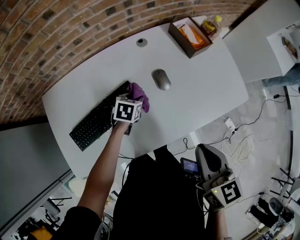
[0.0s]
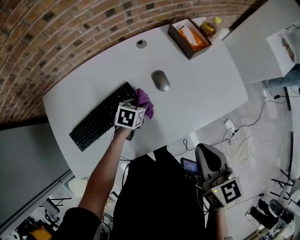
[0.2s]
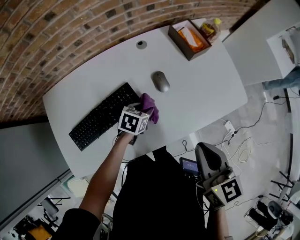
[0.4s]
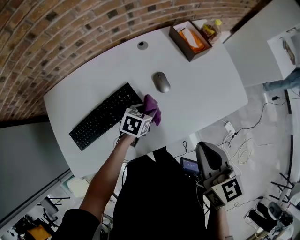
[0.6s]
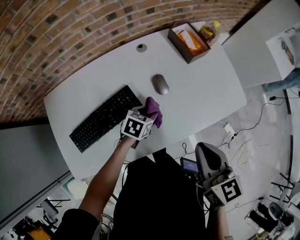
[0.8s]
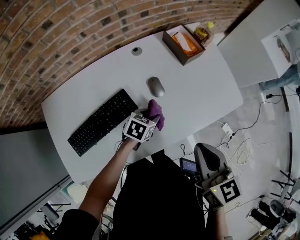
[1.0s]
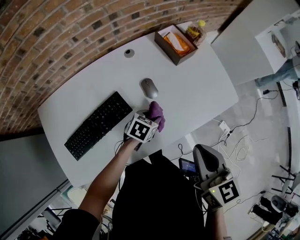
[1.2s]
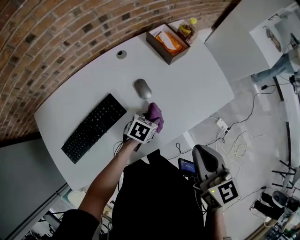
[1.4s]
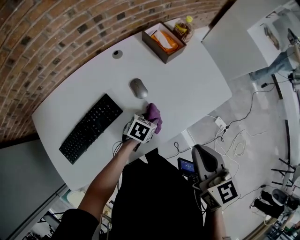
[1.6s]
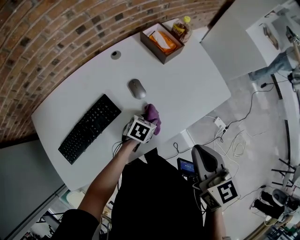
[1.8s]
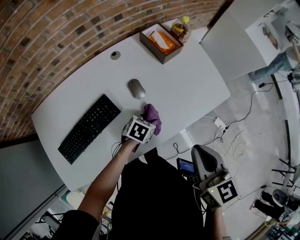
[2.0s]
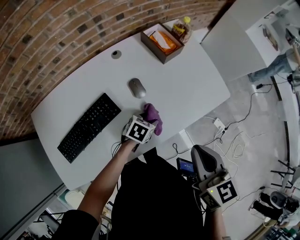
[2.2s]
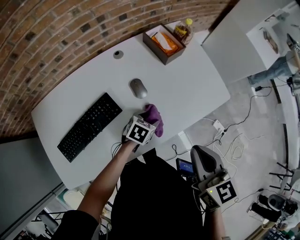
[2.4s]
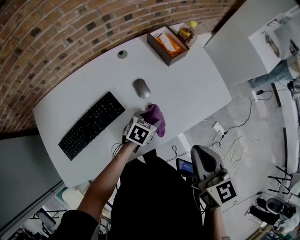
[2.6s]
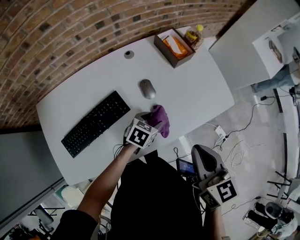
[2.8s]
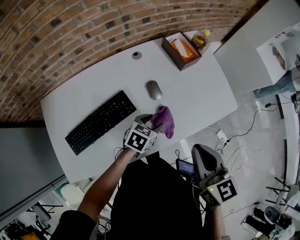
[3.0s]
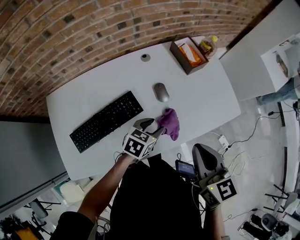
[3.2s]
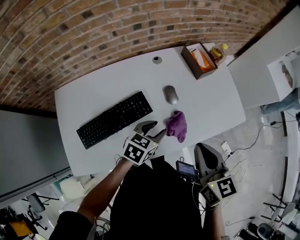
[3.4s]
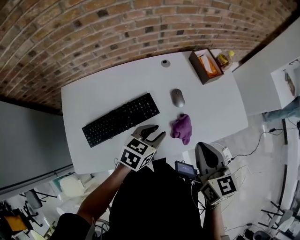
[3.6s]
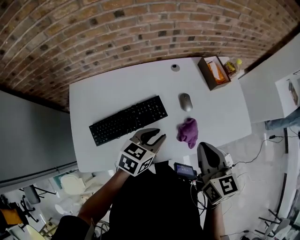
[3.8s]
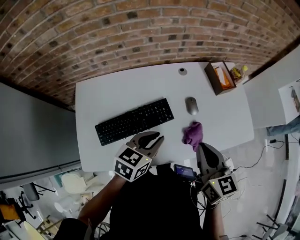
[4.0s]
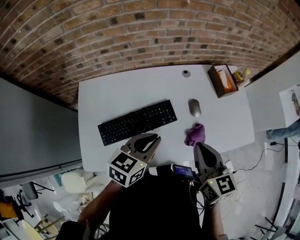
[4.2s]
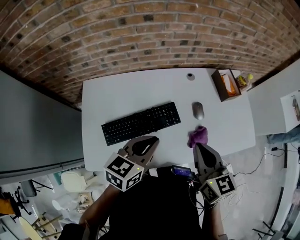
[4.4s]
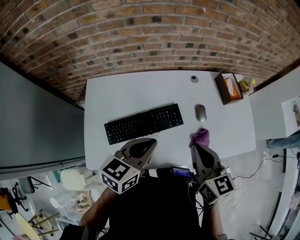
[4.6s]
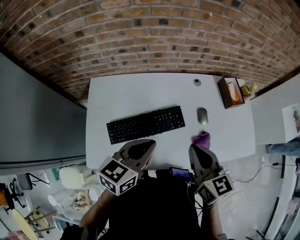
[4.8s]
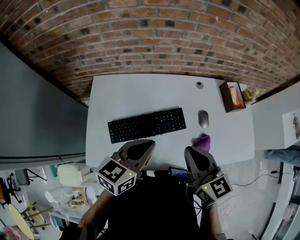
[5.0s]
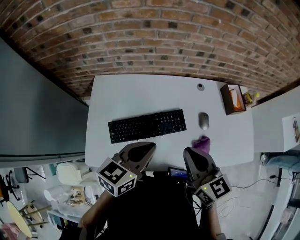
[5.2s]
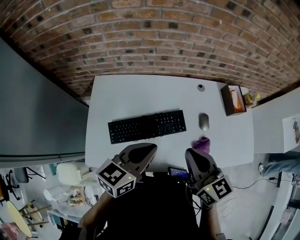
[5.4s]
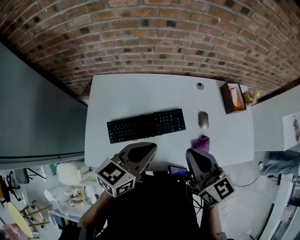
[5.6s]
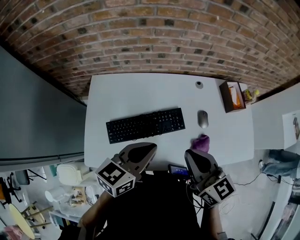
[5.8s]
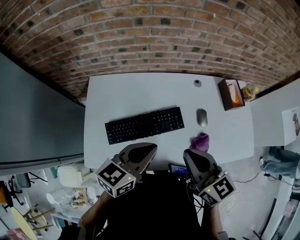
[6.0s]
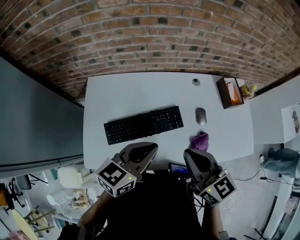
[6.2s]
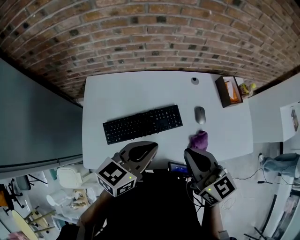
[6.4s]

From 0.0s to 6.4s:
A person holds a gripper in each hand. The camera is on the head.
From 0.0s to 1.6s: The right gripper is displaced to the right by some 5 cm; the left gripper is displaced to the right by approximately 20 cm, and rotates approximately 20 degrees.
From 1.6s to 3.2s: The left gripper moves upward and to the left, approximately 10 cm, while the right gripper travels to the left by roughly 5 cm.
From 3.2s to 4.8s: The left gripper travels to the left, upward and backward by some 30 cm, swivels about 30 degrees, and closes up; the right gripper is displaced to the left by some 20 cm, and rotates about 20 degrees.
From 4.8s to 6.4s: There are only small adjustments of the grippers.

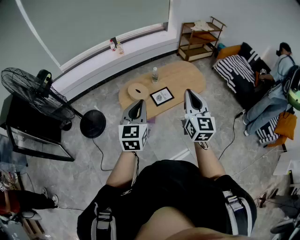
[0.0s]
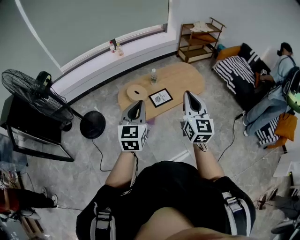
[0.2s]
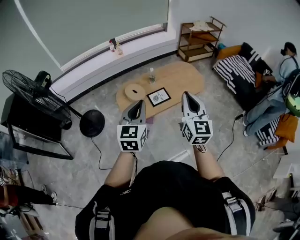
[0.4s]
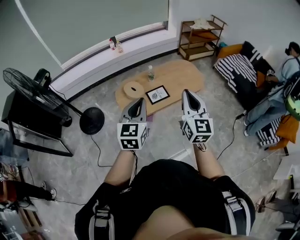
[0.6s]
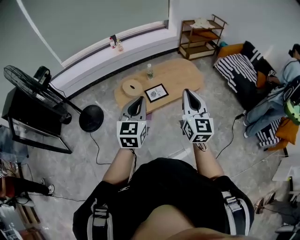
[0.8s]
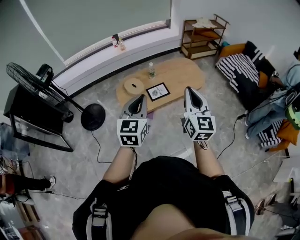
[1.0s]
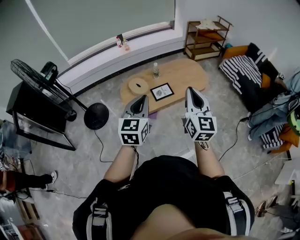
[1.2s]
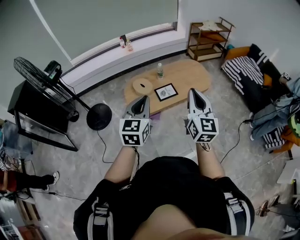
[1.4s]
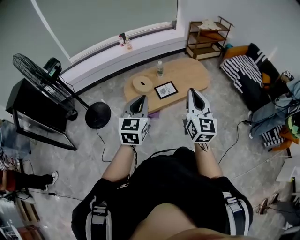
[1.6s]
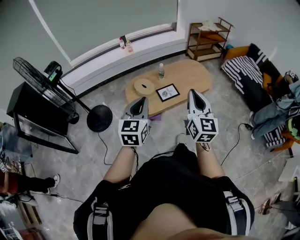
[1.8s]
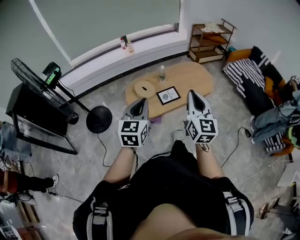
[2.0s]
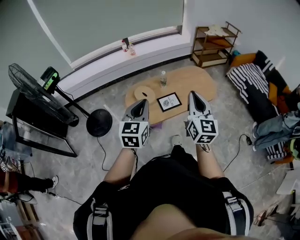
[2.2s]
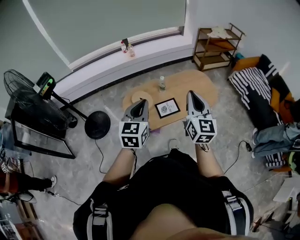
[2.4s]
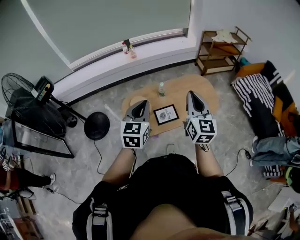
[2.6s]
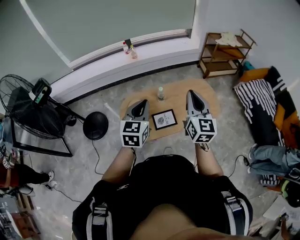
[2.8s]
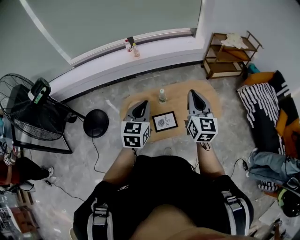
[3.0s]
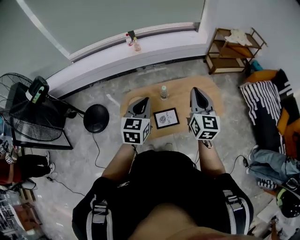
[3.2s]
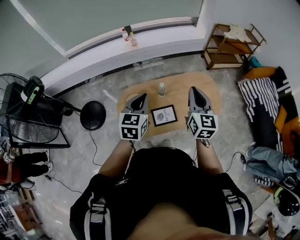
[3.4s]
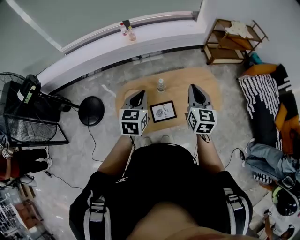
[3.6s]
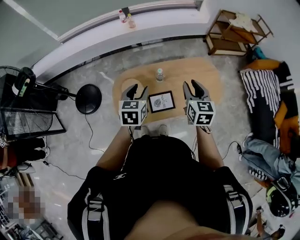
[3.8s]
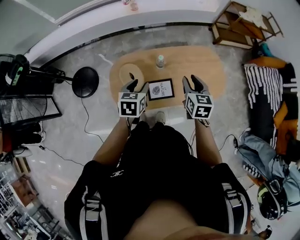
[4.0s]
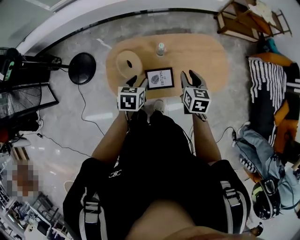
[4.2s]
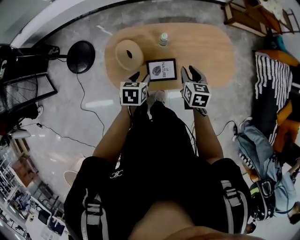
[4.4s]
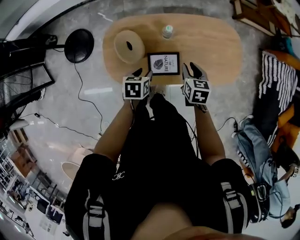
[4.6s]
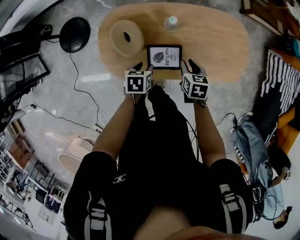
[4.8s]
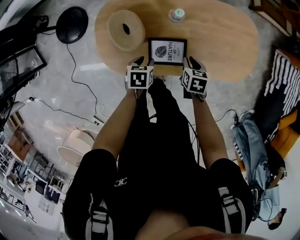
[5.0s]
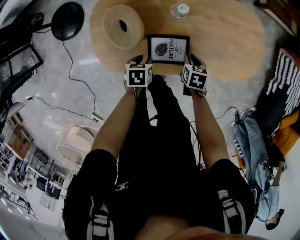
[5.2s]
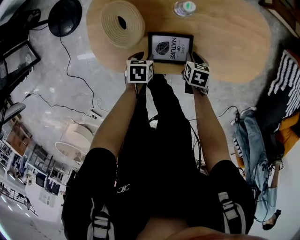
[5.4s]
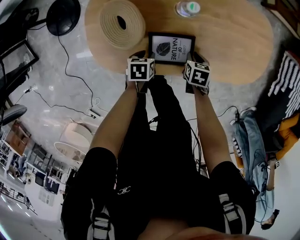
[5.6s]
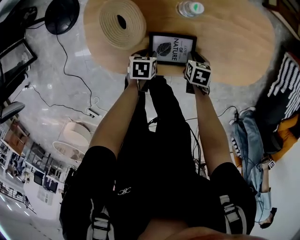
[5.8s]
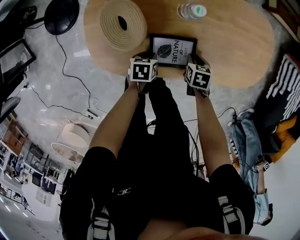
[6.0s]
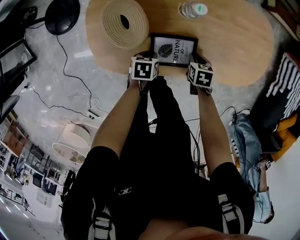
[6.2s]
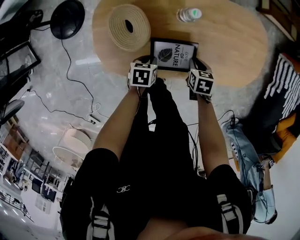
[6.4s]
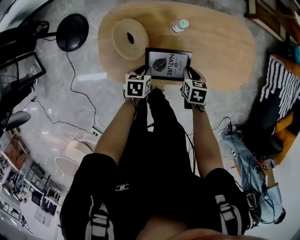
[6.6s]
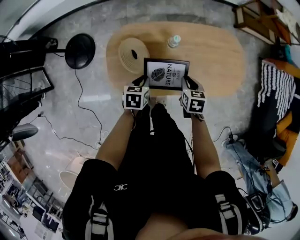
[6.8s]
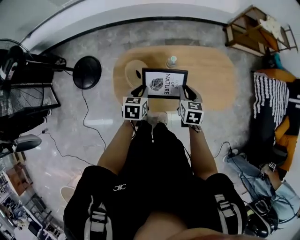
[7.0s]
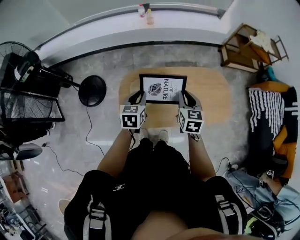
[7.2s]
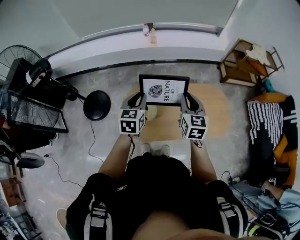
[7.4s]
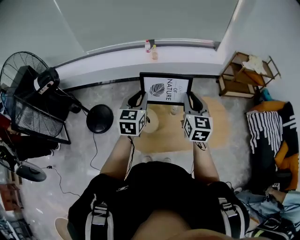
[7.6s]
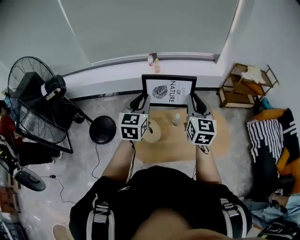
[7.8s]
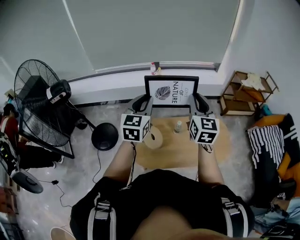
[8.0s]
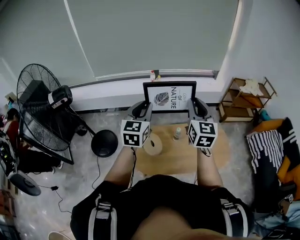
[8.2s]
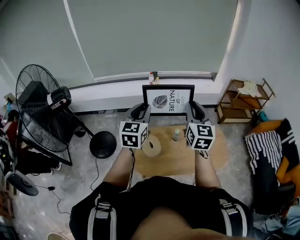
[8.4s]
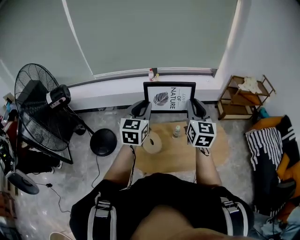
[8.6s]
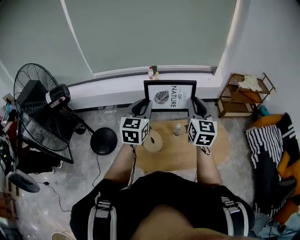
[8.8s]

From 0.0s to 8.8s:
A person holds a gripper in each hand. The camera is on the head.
From 0.0s to 1.4s: The left gripper moves to the right and backward, about 10 cm, while the right gripper is displaced backward and to the right by roughly 10 cm.
From 1.4s to 3.0s: Both grippers are carried forward, approximately 40 cm.
From 3.0s to 4.4s: The two grippers go some 35 cm downward. The right gripper tips its fingers downward by some 40 degrees, and opens. The left gripper points its fingers roughly 40 degrees further downward, and opens up.
From 4.4s to 5.8s: Both grippers move downward, about 40 cm. The left gripper rotates roughly 20 degrees; the right gripper rotates about 30 degrees.
From 5.8s to 7.4s: The two grippers go approximately 60 cm upward. The right gripper tips its fingers upward by about 50 degrees. The left gripper points its fingers about 40 degrees further upward.
From 7.4s to 8.8s: The grippers both shift upward by approximately 20 cm.

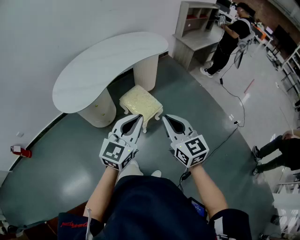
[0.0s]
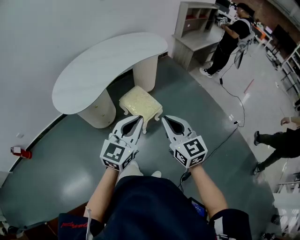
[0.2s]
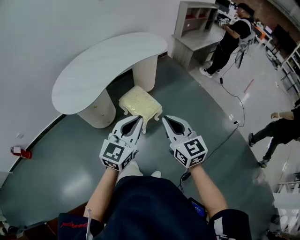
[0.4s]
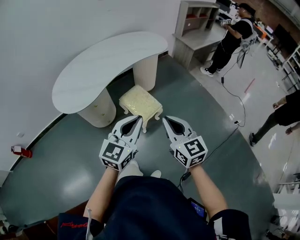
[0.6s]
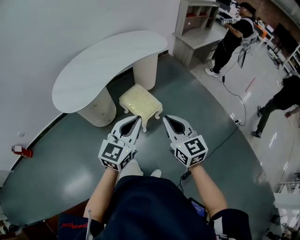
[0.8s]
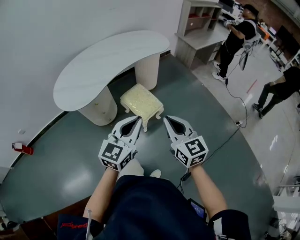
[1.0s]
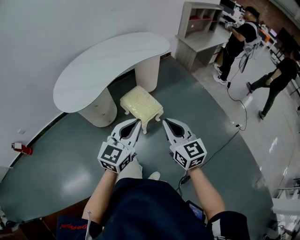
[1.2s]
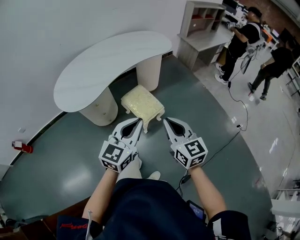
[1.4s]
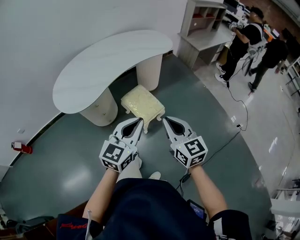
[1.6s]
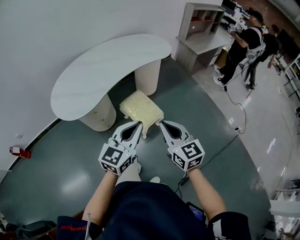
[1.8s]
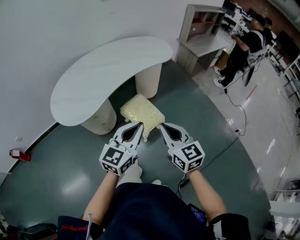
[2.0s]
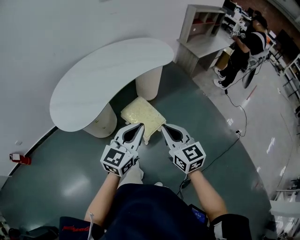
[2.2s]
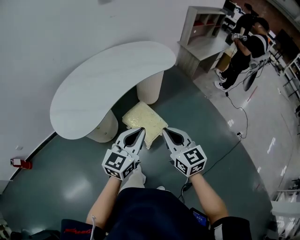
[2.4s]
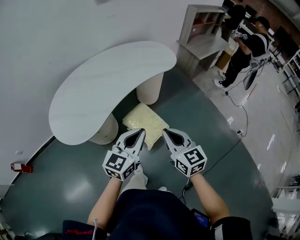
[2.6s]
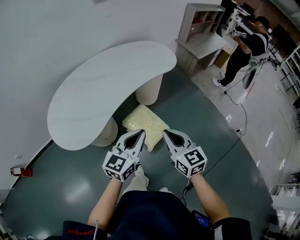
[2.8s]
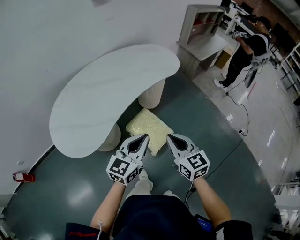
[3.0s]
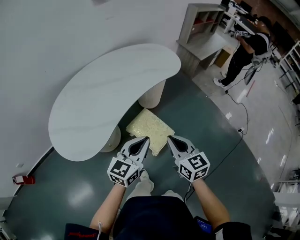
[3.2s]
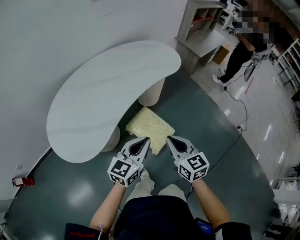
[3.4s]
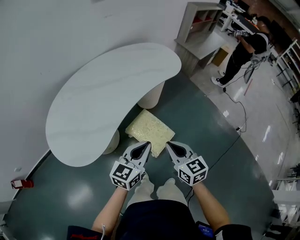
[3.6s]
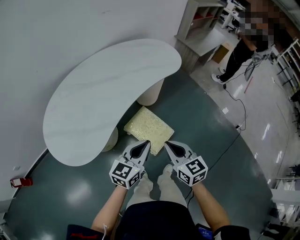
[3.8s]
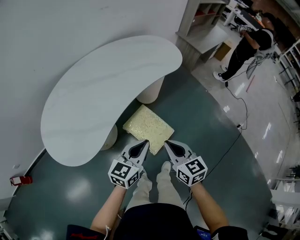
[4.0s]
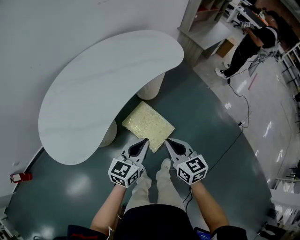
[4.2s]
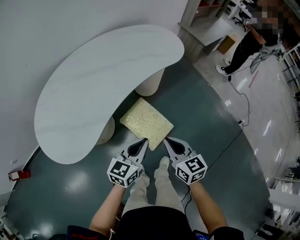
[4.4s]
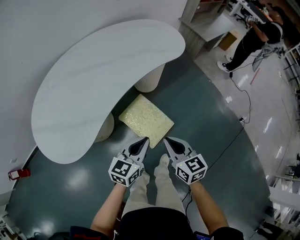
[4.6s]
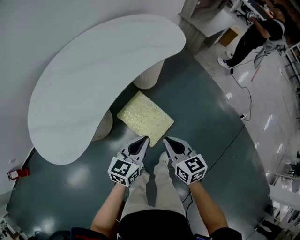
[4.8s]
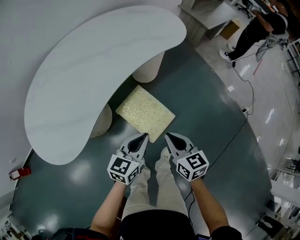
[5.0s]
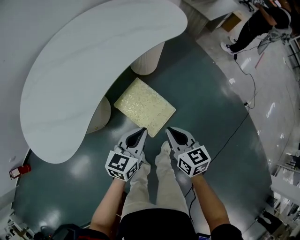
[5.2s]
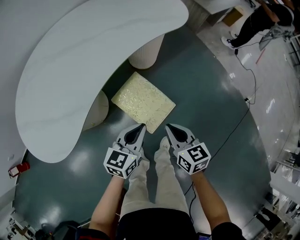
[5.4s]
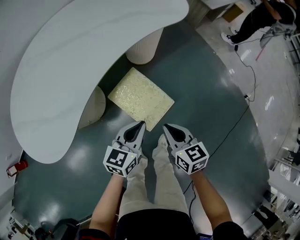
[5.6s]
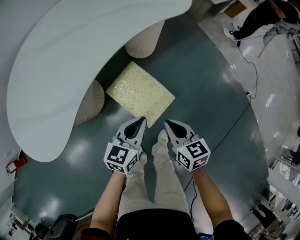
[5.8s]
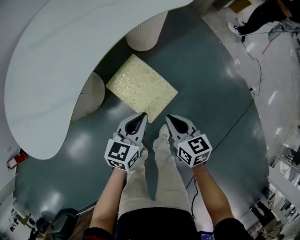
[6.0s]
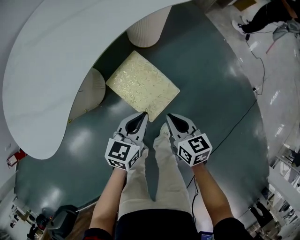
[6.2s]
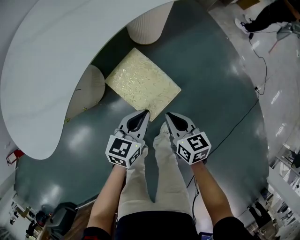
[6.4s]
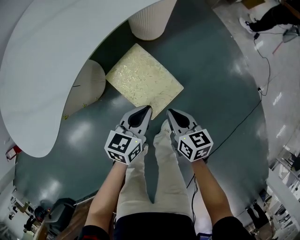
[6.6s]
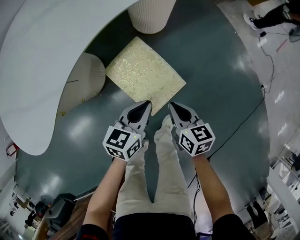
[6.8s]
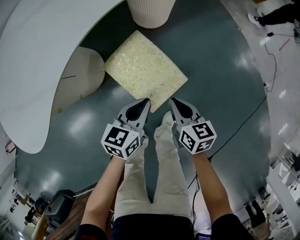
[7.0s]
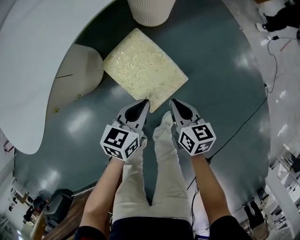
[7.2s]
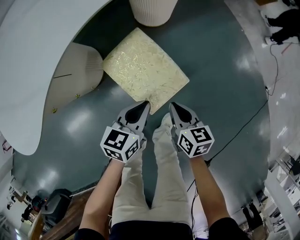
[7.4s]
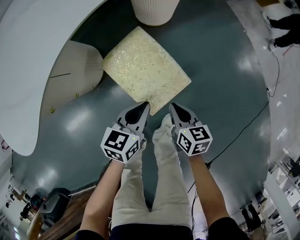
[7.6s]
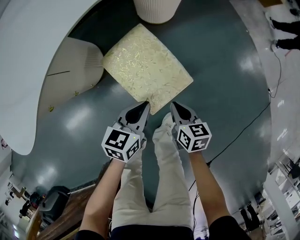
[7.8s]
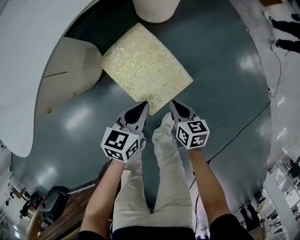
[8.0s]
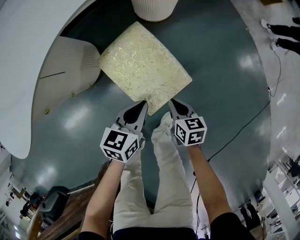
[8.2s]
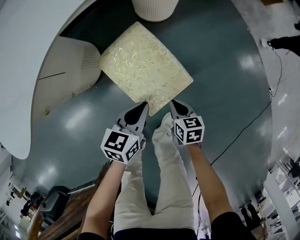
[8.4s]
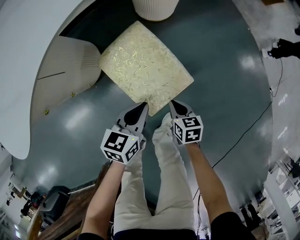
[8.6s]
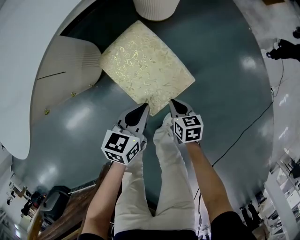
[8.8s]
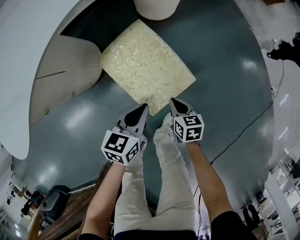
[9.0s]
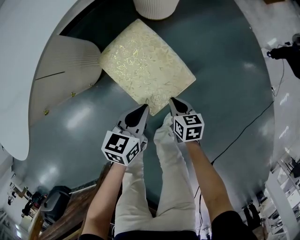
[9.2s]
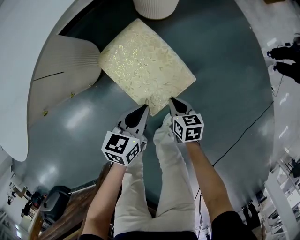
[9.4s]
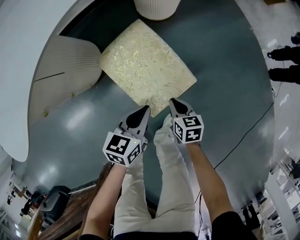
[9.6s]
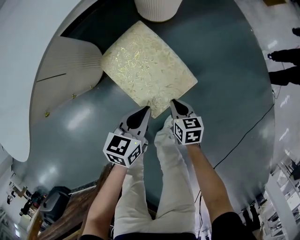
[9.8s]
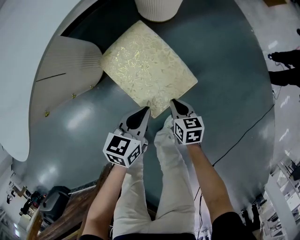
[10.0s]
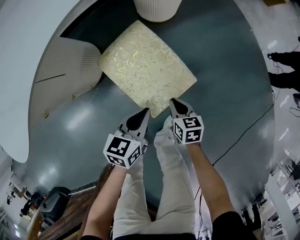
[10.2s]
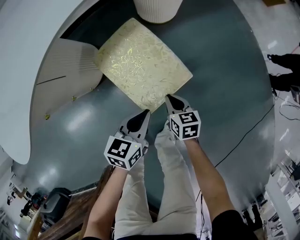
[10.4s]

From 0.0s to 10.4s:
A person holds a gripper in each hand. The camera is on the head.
From 0.0s to 1.4s: The grippers stay close to where they were, moving slightly.
From 1.4s to 3.0s: The left gripper heads forward, covering about 20 cm. Meanwhile the right gripper heads forward and to the left, covering some 20 cm.
From 3.0s to 4.4s: Both grippers travel together downward, approximately 10 cm.
From 4.4s to 6.0s: The two grippers go some 20 cm downward.
From 6.0s to 7.4s: Both grippers move downward, some 15 cm.
From 7.4s to 9.0s: The right gripper goes approximately 15 cm downward. The left gripper heads downward, covering approximately 5 cm.
From 9.0s to 10.4s: The grippers move only a little.
